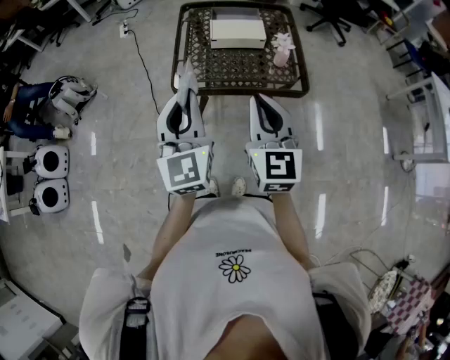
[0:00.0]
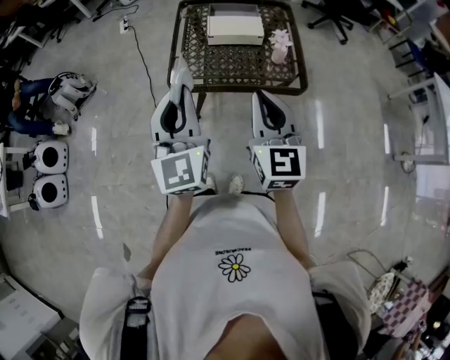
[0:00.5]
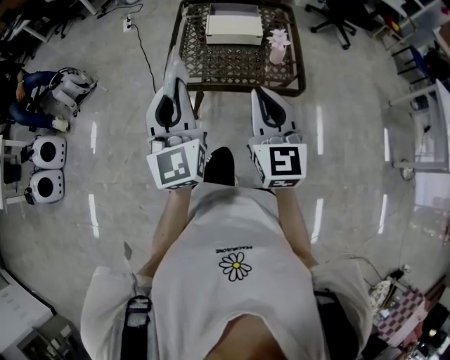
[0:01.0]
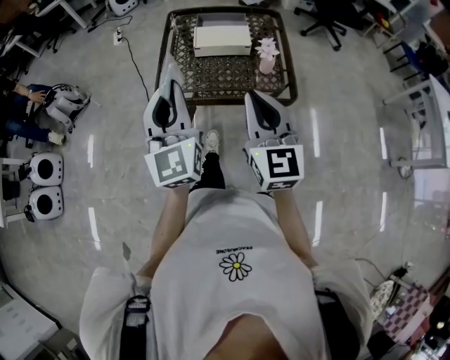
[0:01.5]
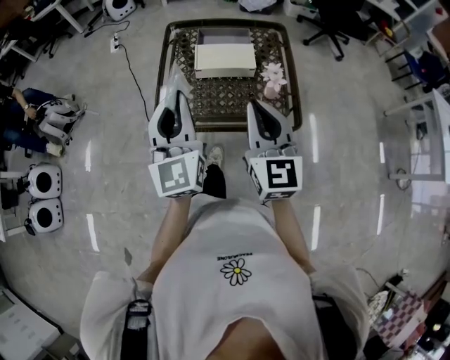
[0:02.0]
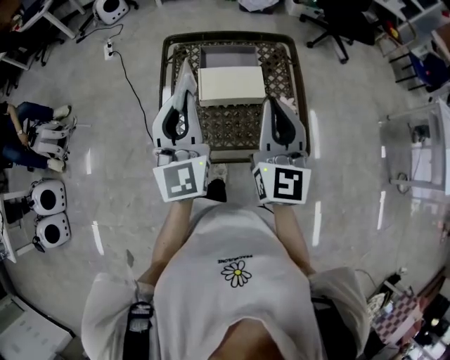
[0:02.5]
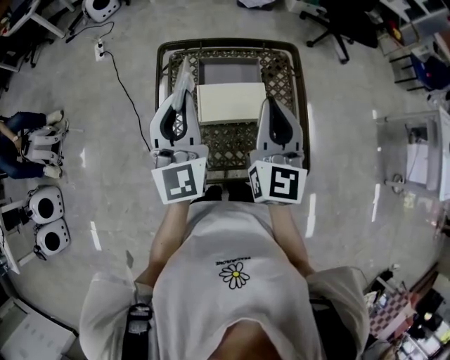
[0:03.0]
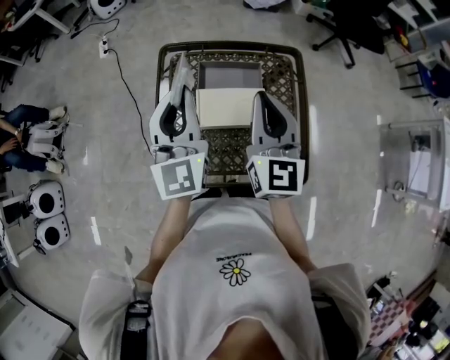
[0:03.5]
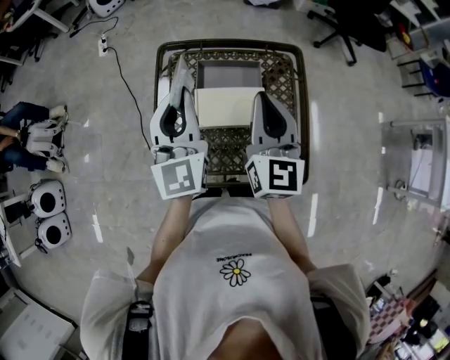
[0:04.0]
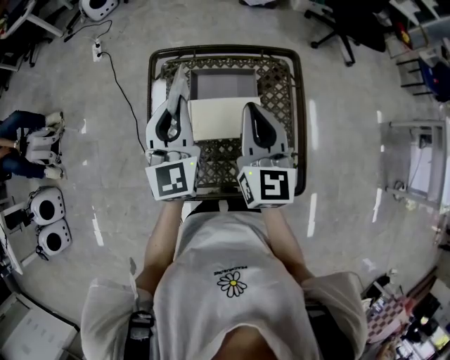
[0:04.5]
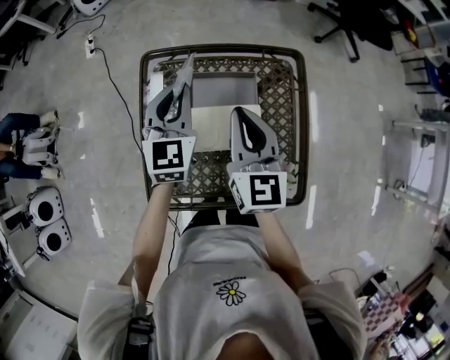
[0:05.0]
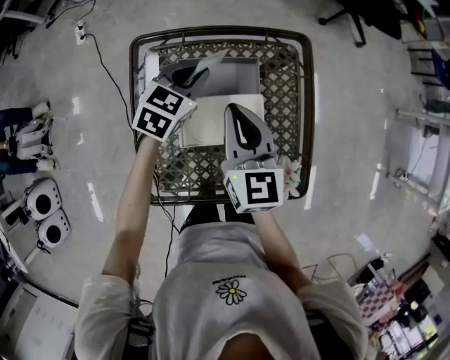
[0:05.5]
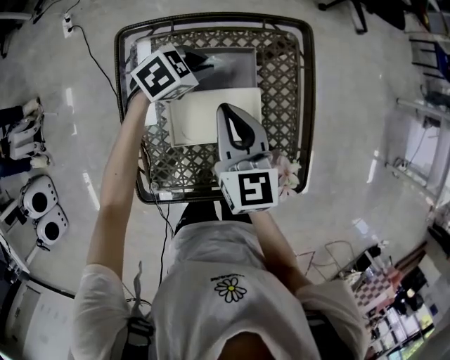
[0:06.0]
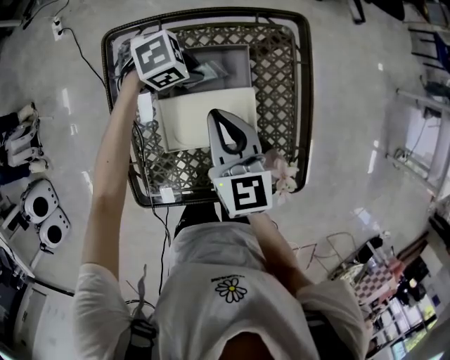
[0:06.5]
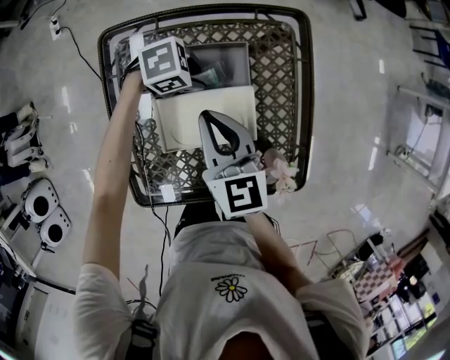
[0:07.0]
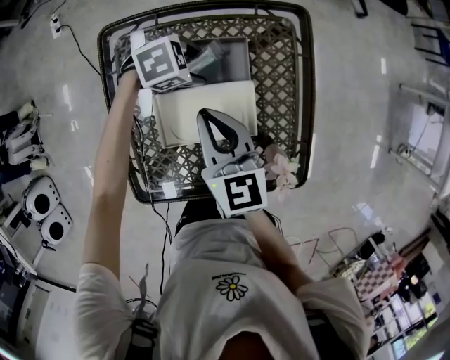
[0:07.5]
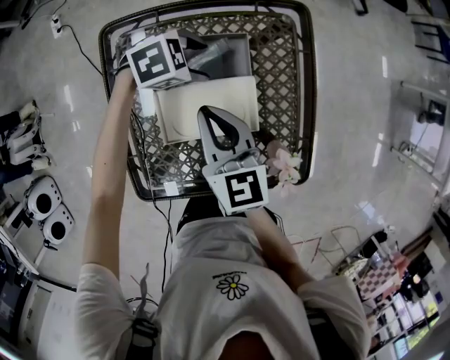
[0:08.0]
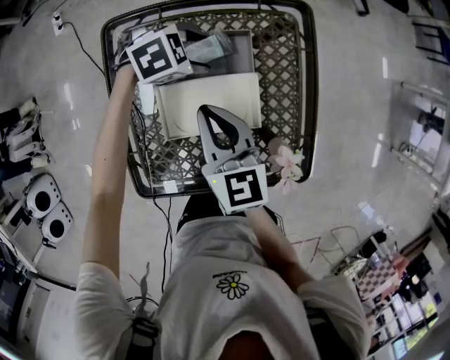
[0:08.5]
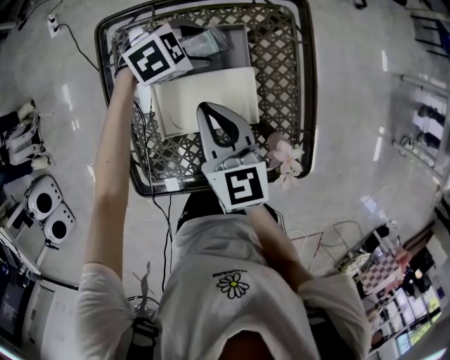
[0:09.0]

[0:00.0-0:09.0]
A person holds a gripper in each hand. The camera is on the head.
0:00.0 to 0:02.0: The two grippers go some 15 cm forward and to the right.
0:02.0 to 0:04.5: Both grippers travel together forward, about 30 cm.
0:04.5 to 0:07.0: The left gripper heads downward, covering some 30 cm, and tips its fingers downward by about 50 degrees; the right gripper goes roughly 15 cm downward, and changes its angle by approximately 20 degrees.
0:07.0 to 0:09.0: The left gripper changes place by about 5 cm, changes its angle by approximately 20 degrees, and opens.

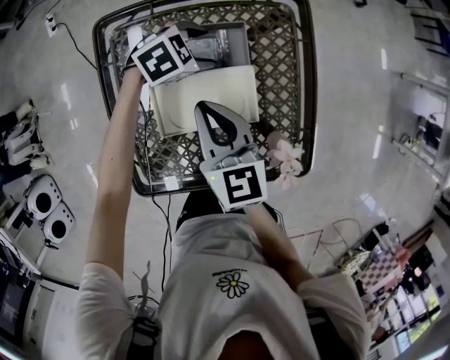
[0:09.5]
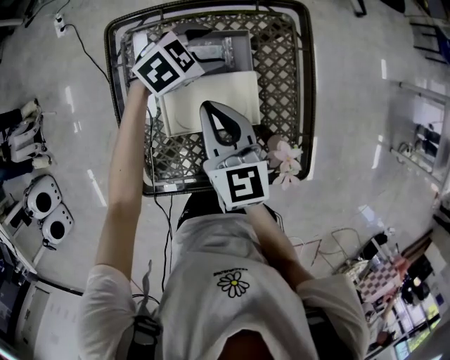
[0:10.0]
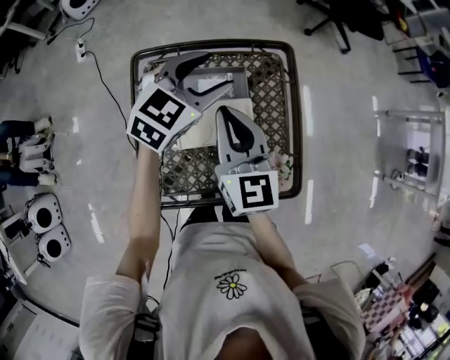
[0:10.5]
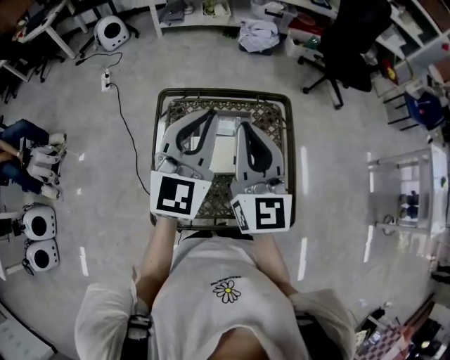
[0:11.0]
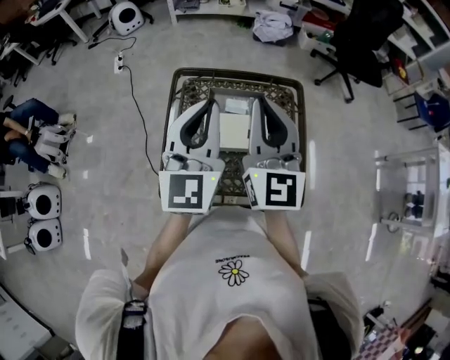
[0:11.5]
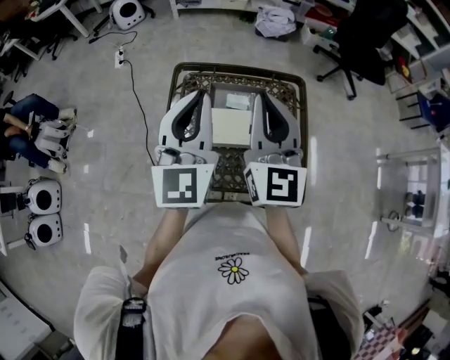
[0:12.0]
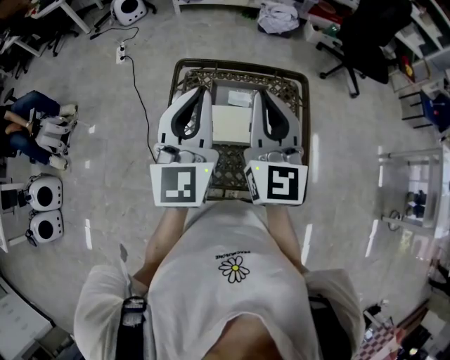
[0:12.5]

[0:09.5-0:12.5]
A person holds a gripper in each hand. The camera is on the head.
0:09.5 to 0:11.0: The left gripper heads upward, covering roughly 40 cm, angles its fingers upward, by about 50 degrees, and closes up, while the right gripper goes approximately 25 cm upward, and changes its angle by approximately 30 degrees.
0:11.0 to 0:12.5: The left gripper moves to the left, roughly 5 cm.

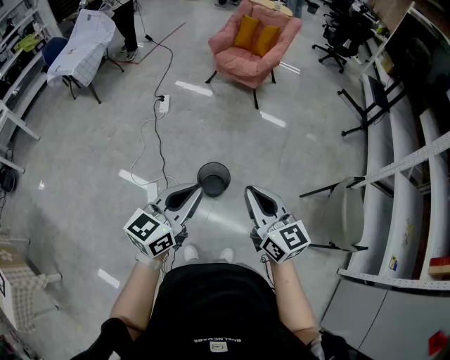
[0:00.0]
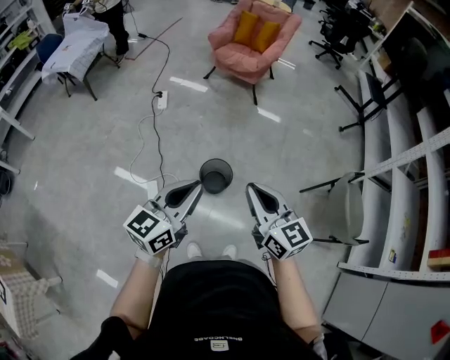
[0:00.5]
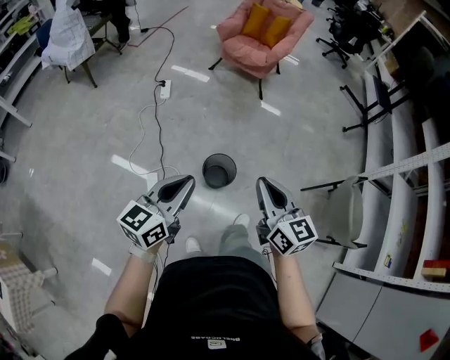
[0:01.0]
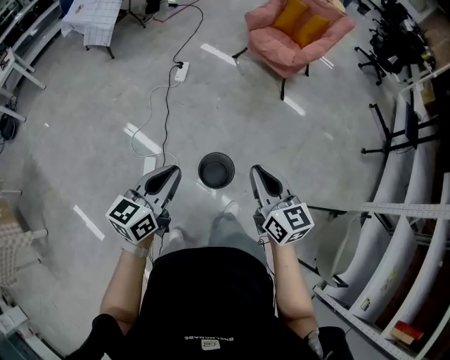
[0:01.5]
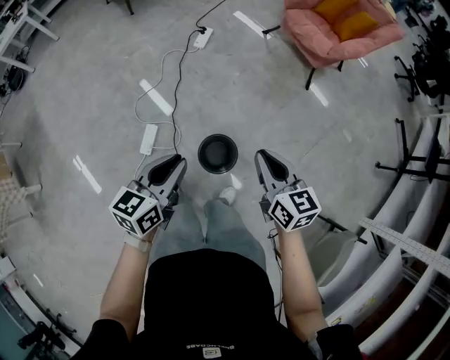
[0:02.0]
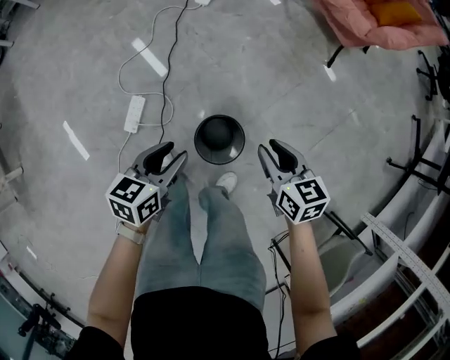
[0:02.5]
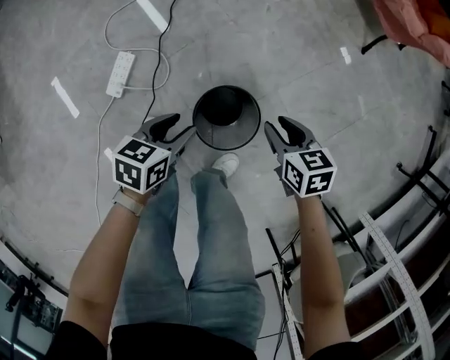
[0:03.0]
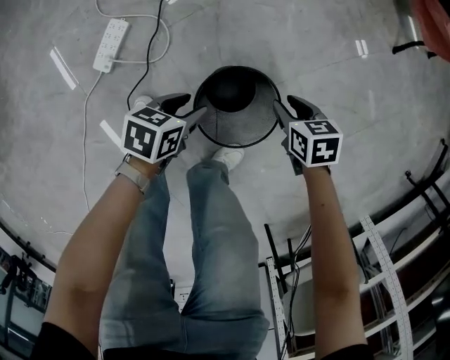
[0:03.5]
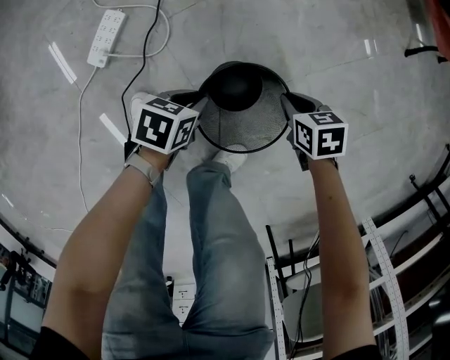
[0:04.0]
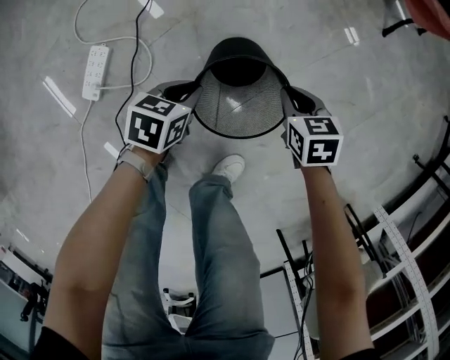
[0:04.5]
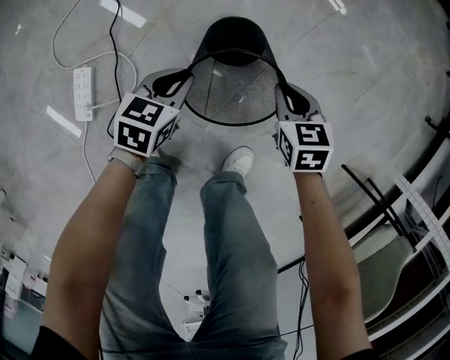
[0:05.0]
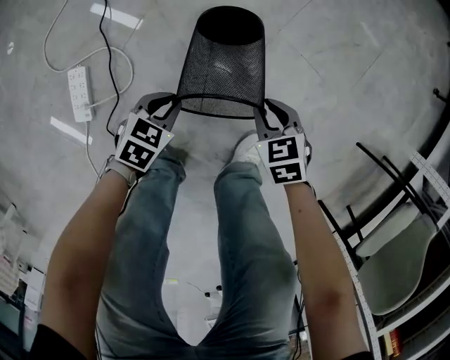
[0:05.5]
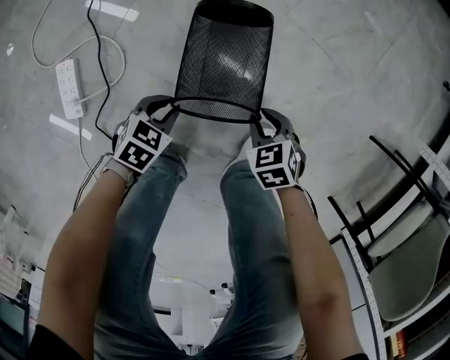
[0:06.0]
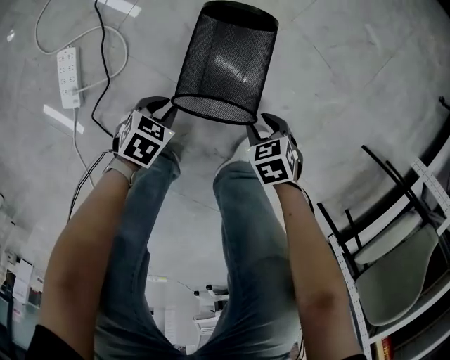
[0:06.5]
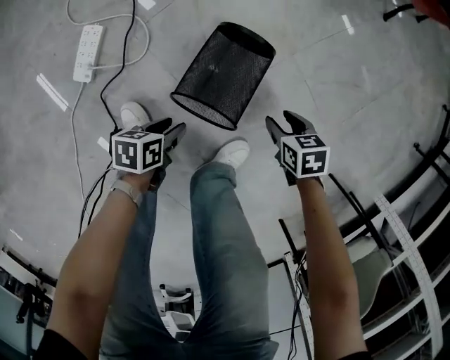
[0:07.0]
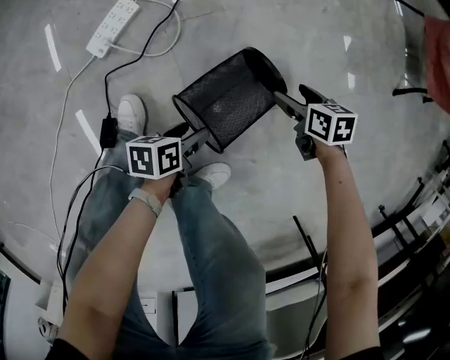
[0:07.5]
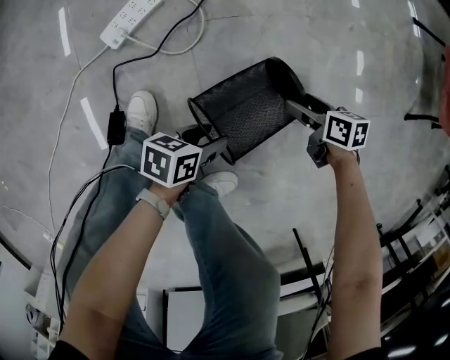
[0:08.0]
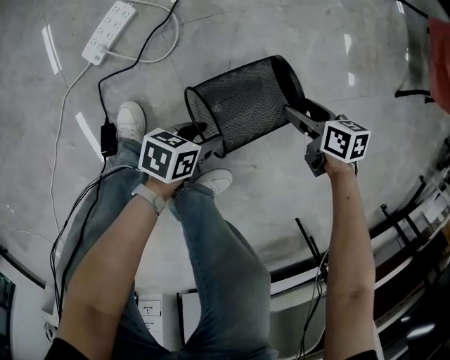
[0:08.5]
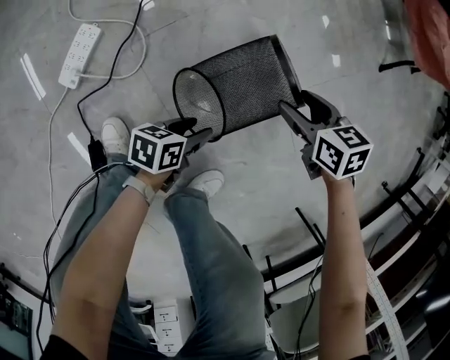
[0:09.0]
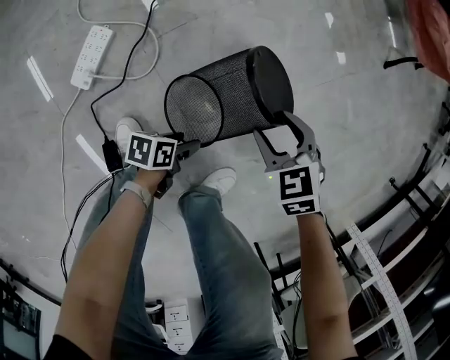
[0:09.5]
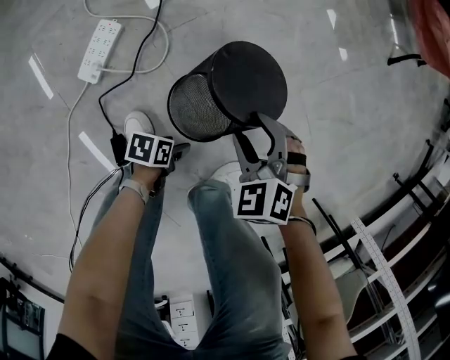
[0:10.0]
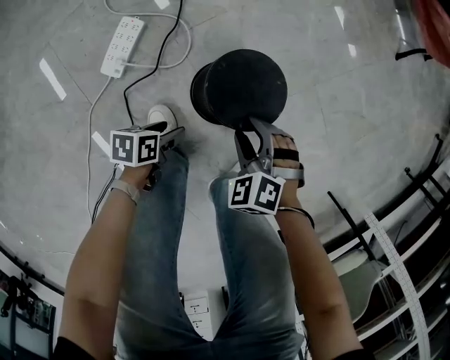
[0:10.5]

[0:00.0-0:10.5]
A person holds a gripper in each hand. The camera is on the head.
0:00.0 to 0:02.0: The left gripper shifts by roughly 25 cm, and rotates approximately 40 degrees, while the right gripper changes place by roughly 30 cm, and changes its angle by some 30 degrees.
0:02.0 to 0:04.0: The grippers both shift downward by some 60 cm. The left gripper angles its fingers downward, by roughly 40 degrees, and opens and closes again, while the right gripper tips its fingers downward by roughly 50 degrees.
0:04.0 to 0:06.5: The left gripper moves downward, about 10 cm, and rotates around the line of its fingers by about 40 degrees, clockwise from behind; the right gripper moves about 25 cm.
0:06.5 to 0:08.5: The left gripper moves upward, approximately 10 cm, twists roughly 60 degrees counterclockwise, seen from behind, and opens its fingers; the right gripper swings up and down, approximately 10 cm each way, with 2 reversals, swivels roughly 30 degrees, and opens.
0:08.5 to 0:10.5: The right gripper ends up roughly 25 cm from where it was, rolls counterclockwise, seen from behind, by some 60 degrees, and closes, while the left gripper ends up about 20 cm from where it was.

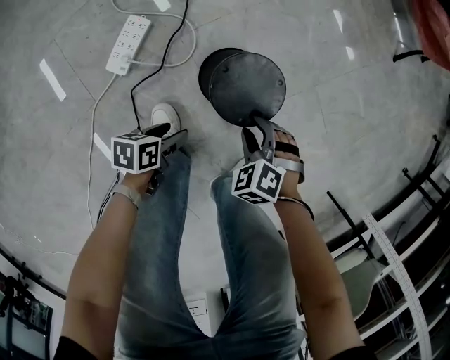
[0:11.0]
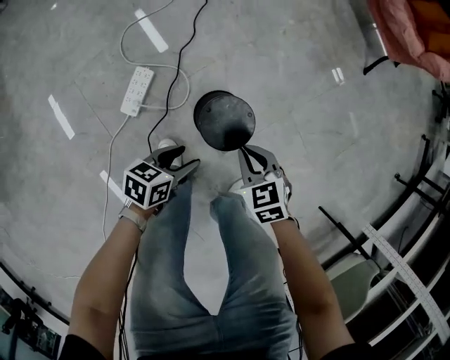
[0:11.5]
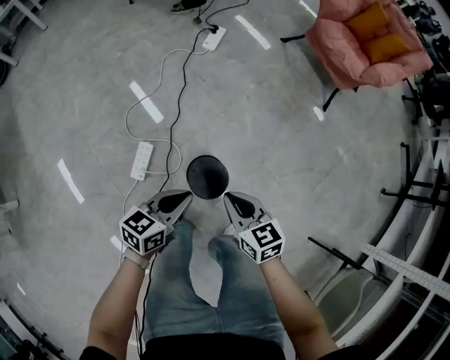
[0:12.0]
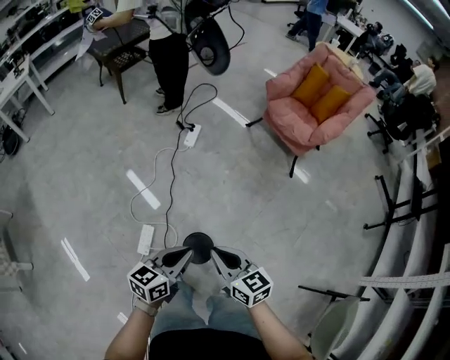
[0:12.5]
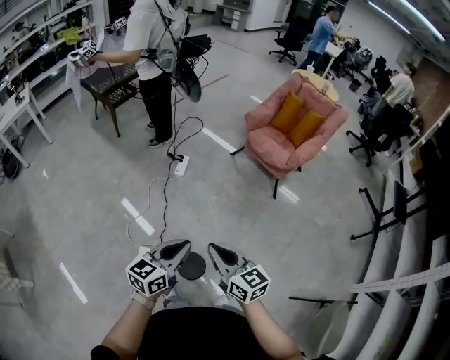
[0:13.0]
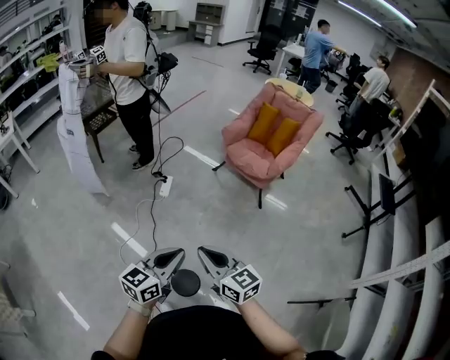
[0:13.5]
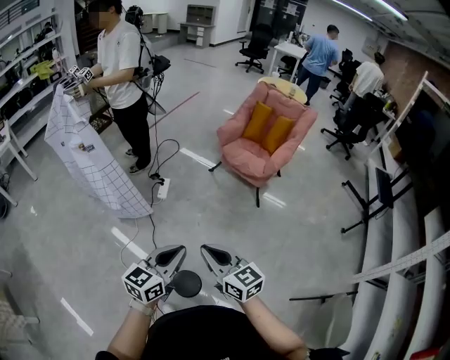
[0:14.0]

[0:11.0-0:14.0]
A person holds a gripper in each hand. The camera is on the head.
0:11.0 to 0:12.5: The grippers both shift upward by approximately 60 cm. The right gripper tips its fingers upward by roughly 50 degrees, and closes up. Meanwhile the left gripper tips its fingers upward by some 30 degrees, and closes its fingers.
0:12.5 to 0:14.0: Both grippers move upward, roughly 20 cm.
